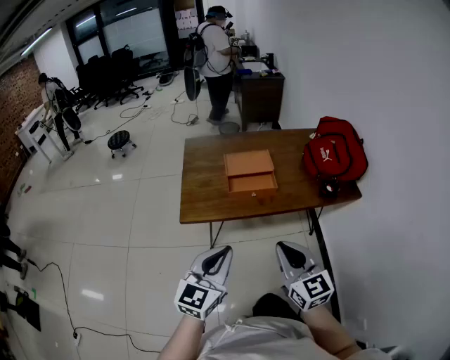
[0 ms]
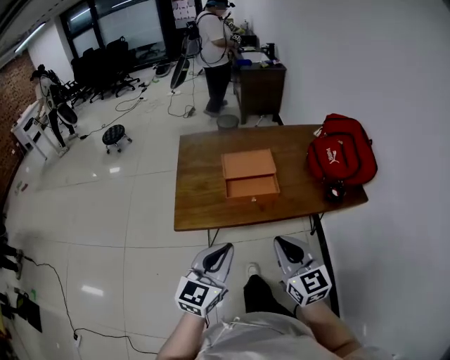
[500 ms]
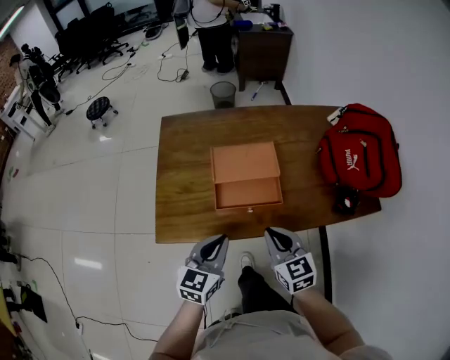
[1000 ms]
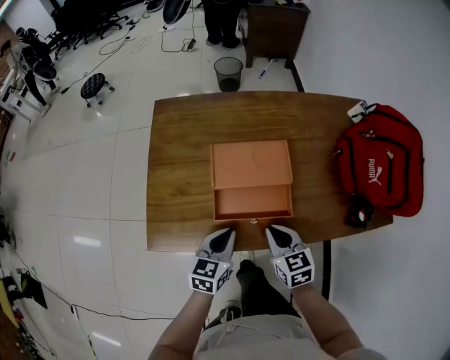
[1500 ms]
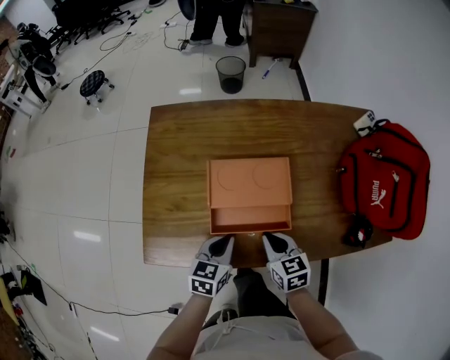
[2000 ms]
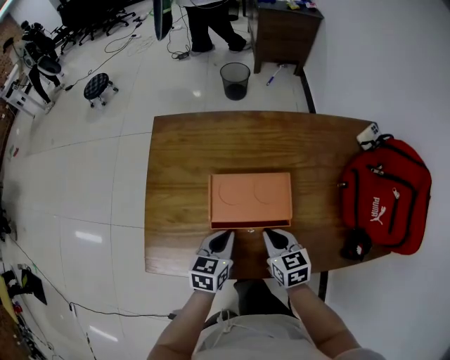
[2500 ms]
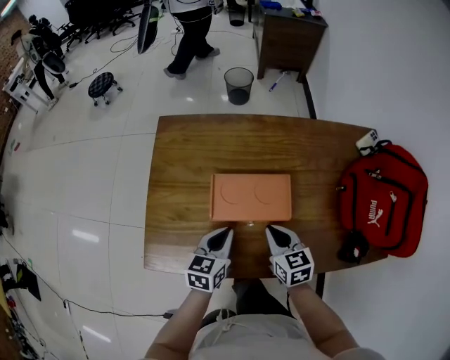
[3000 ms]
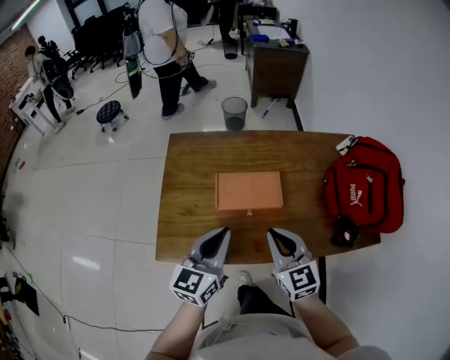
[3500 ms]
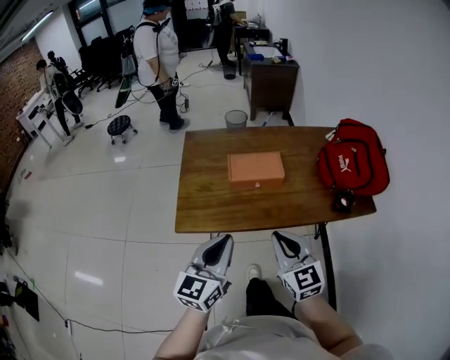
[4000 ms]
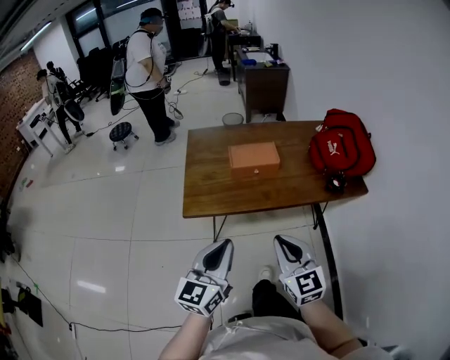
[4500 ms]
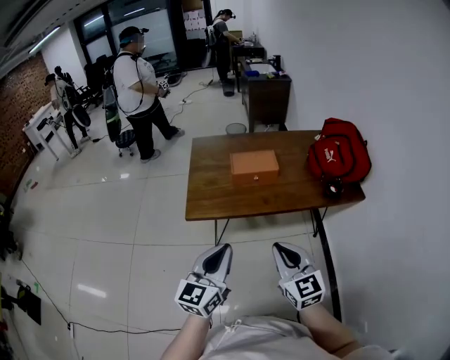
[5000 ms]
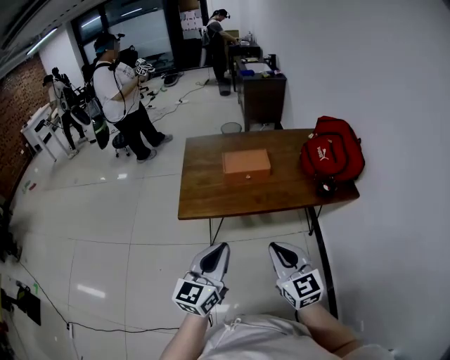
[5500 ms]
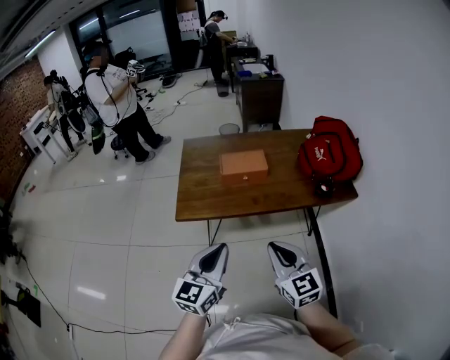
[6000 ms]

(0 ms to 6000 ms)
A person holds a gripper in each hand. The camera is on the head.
0 ms - 2000 ms: Both grippers move forward and downward, roughly 40 cm. The right gripper tips its fingers downward by approximately 30 degrees. Meanwhile the left gripper rotates approximately 40 degrees.
2000 ms - 4000 ms: The grippers both shift upward and backward by about 30 cm. The left gripper points its fingers some 30 degrees further upward. The right gripper rotates approximately 30 degrees.
4000 ms - 6000 ms: The two grippers go some 15 cm backward.

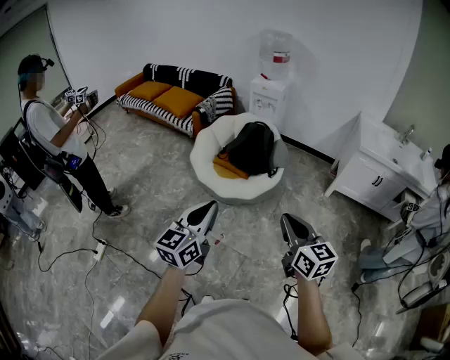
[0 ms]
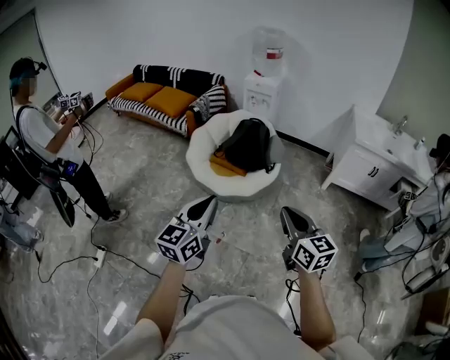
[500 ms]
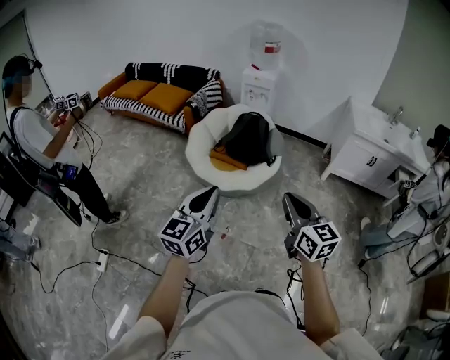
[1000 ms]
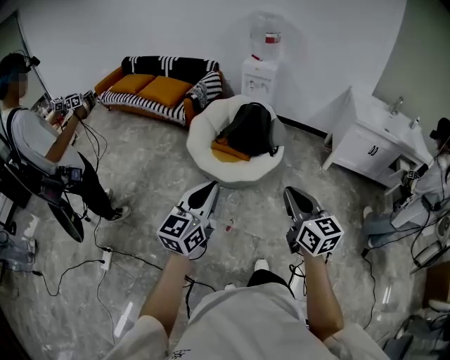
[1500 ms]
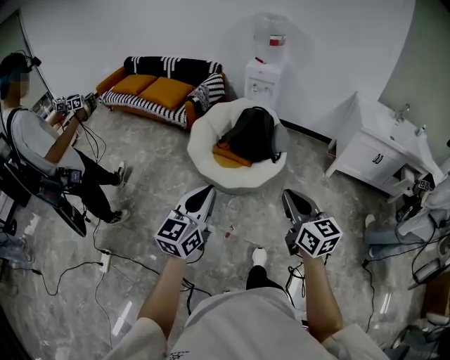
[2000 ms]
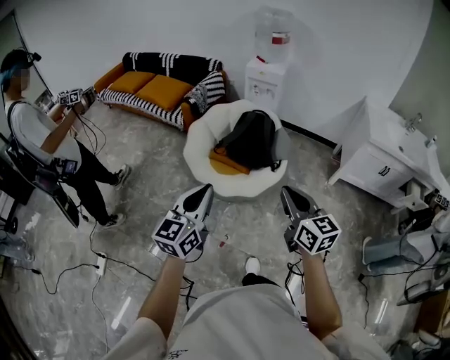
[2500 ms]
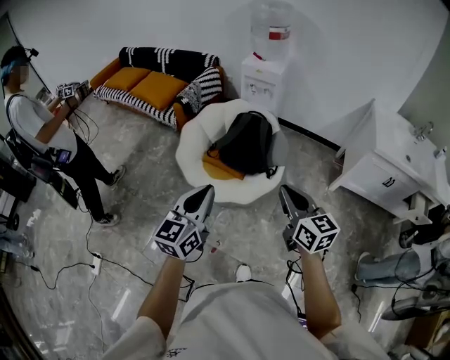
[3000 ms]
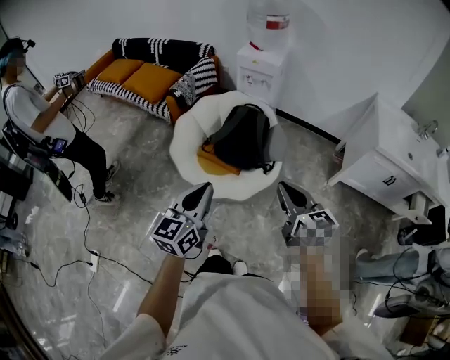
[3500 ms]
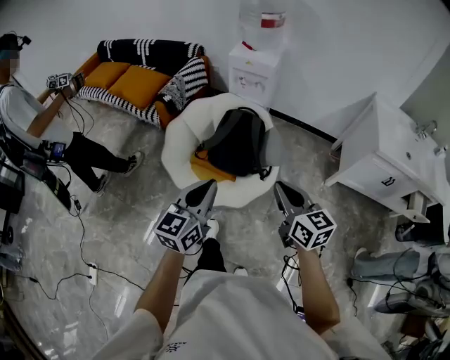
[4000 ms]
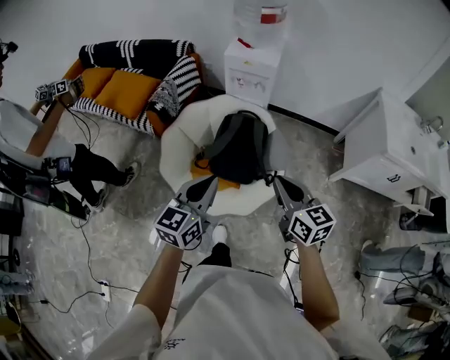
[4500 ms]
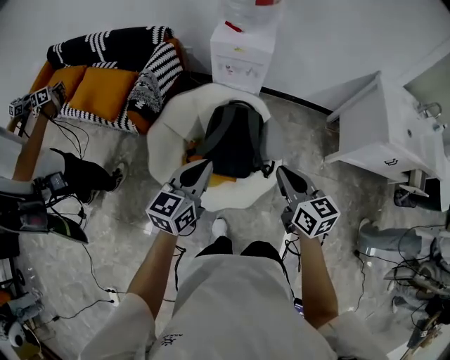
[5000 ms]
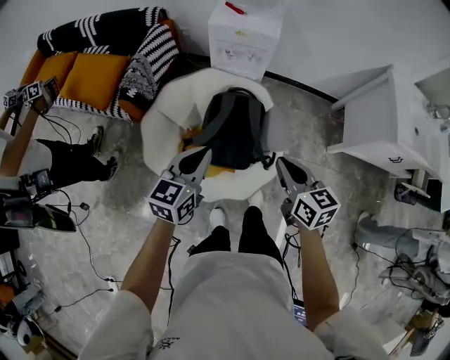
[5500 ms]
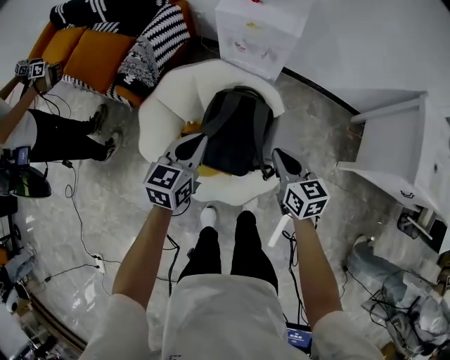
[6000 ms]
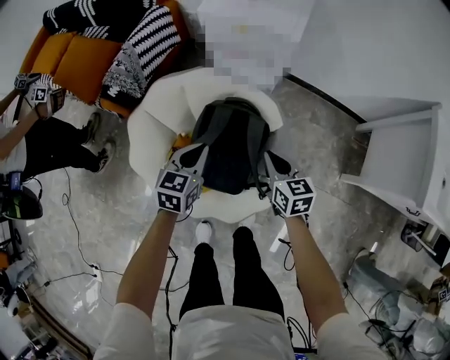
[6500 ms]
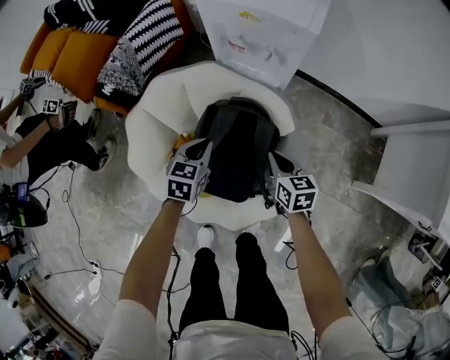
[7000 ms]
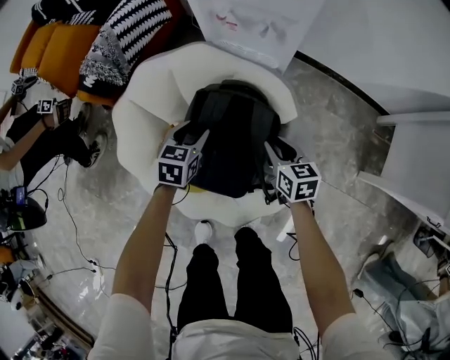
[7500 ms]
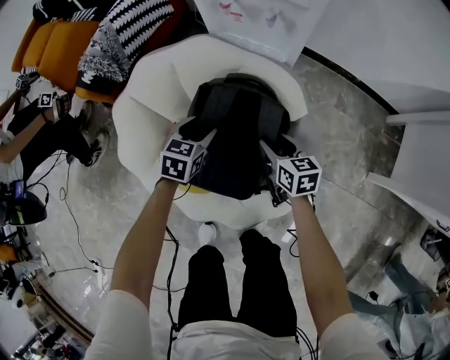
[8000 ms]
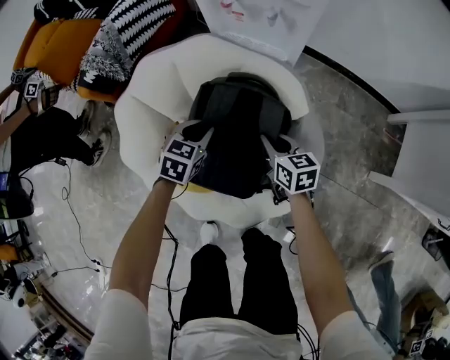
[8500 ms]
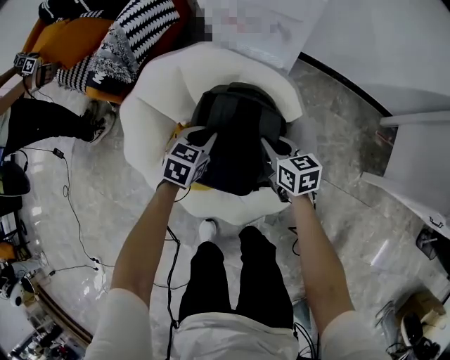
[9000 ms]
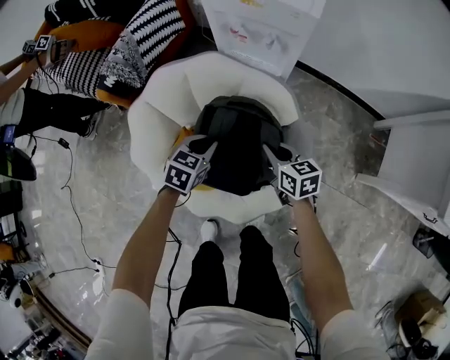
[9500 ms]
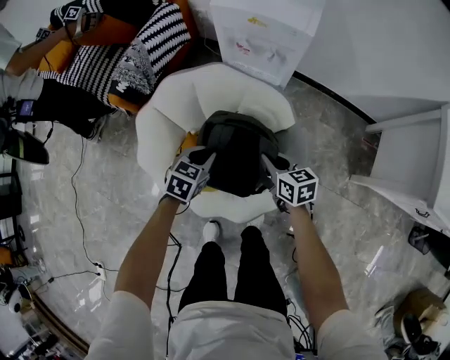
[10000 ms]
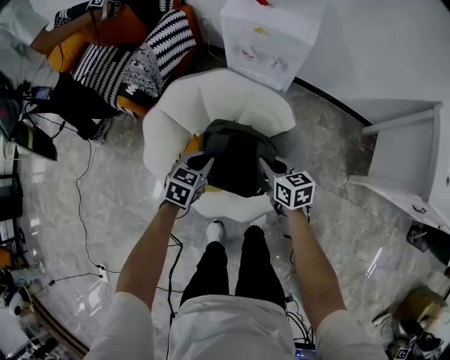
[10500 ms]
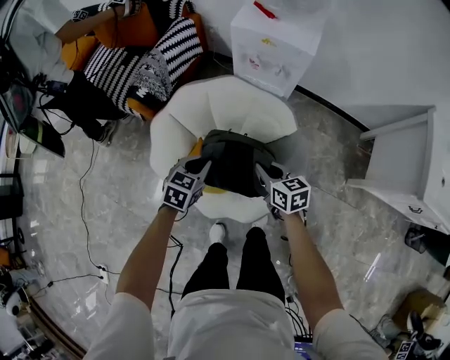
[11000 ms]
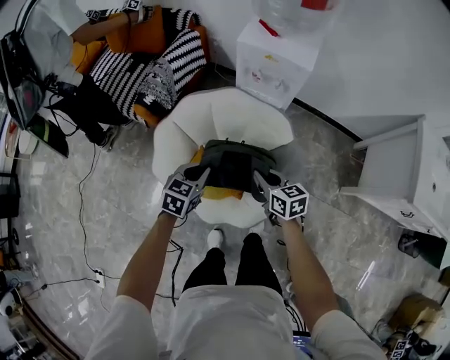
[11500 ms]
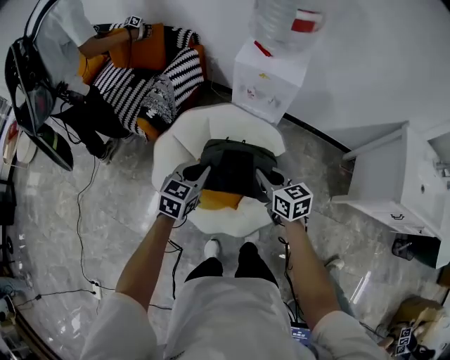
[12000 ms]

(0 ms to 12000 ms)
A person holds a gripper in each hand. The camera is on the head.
0 ms - 2000 ms: Both grippers move to the left, approximately 10 cm.
2000 ms - 4000 ms: The left gripper travels forward and to the right by approximately 40 cm; the right gripper heads forward, covering roughly 35 cm.
4000 ms - 6000 ms: The two grippers go some 40 cm forward and downward. The left gripper rotates approximately 20 degrees.
6000 ms - 8000 ms: Both grippers travel together downward, about 30 cm. The left gripper turns by about 20 degrees, and opens, while the right gripper opens up.
8000 ms - 10000 ms: The right gripper moves upward, about 15 cm, and closes its fingers. Meanwhile the left gripper travels upward and backward by roughly 15 cm, and closes.
10000 ms - 12000 ms: The two grippers go some 20 cm upward.

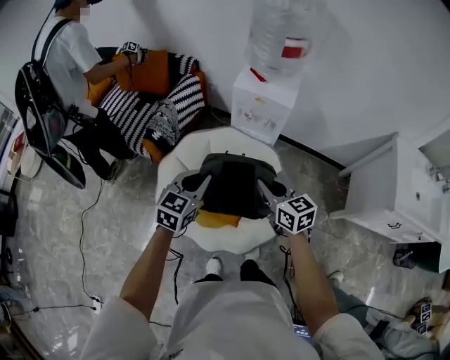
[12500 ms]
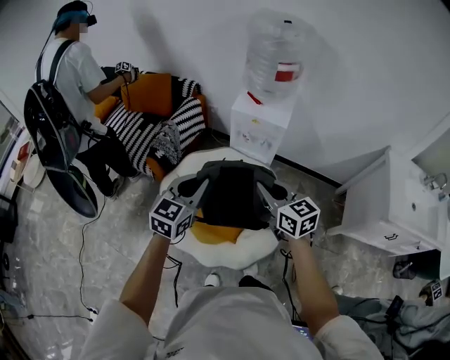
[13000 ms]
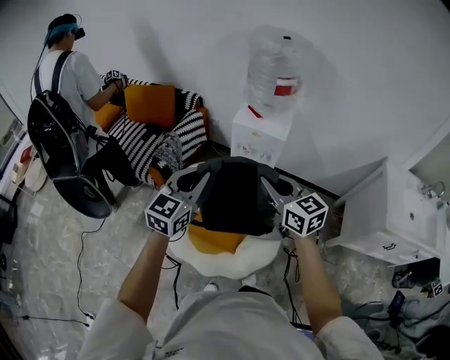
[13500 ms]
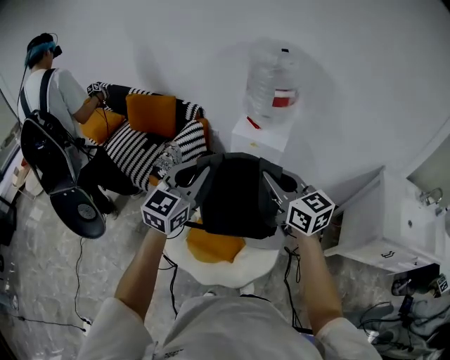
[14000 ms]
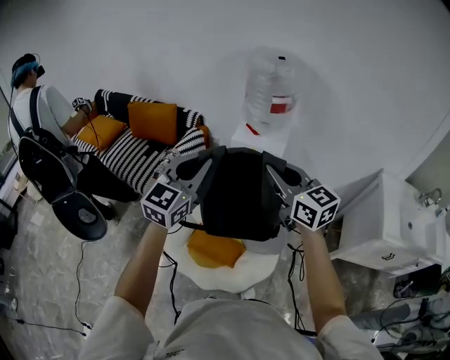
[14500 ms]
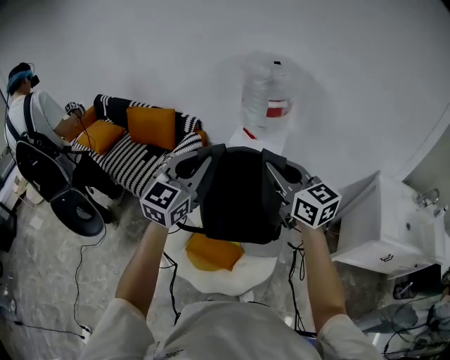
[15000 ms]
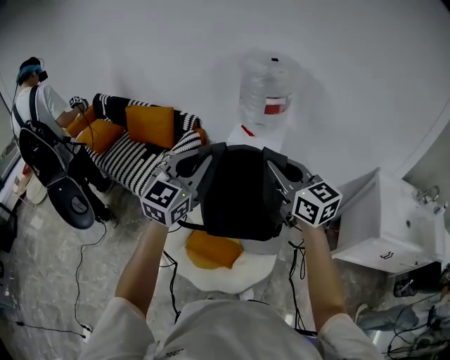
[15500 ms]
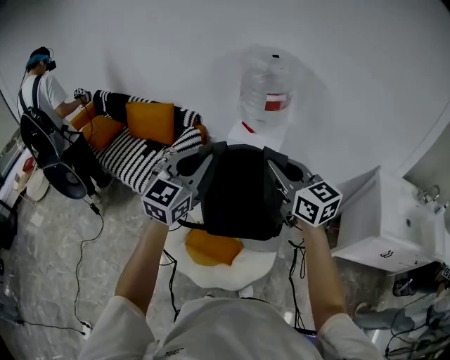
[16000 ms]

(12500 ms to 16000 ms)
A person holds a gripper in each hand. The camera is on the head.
12500 ms - 14500 ms: The grippers both shift upward by some 25 cm. The right gripper turns by about 20 degrees; the left gripper changes its angle by roughly 30 degrees.
14500 ms - 16000 ms: The grippers make only small movements.

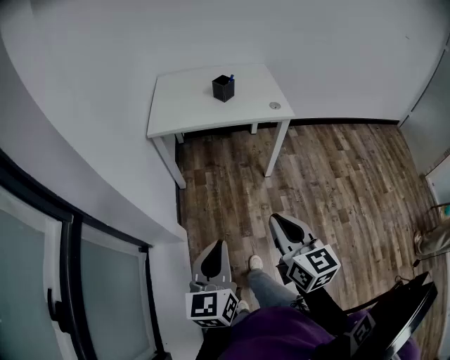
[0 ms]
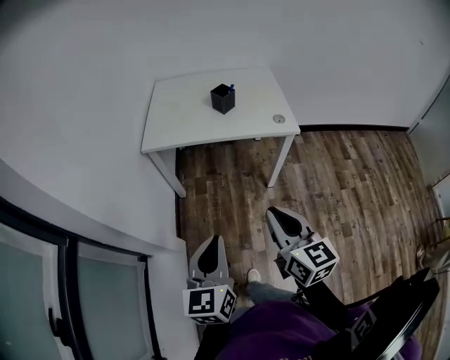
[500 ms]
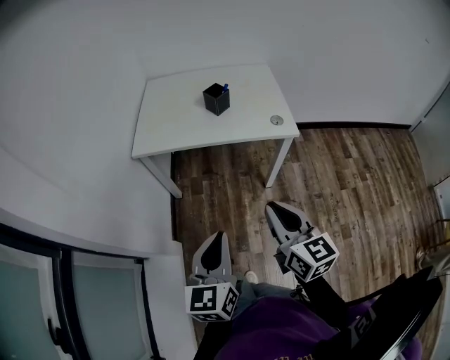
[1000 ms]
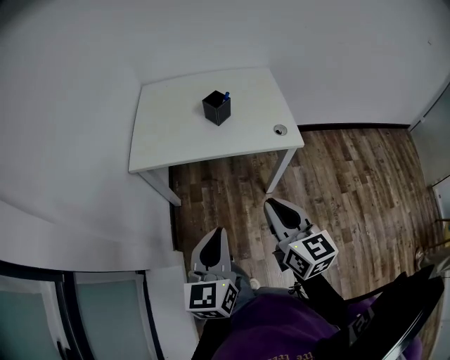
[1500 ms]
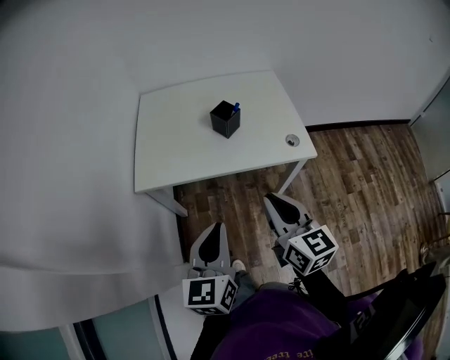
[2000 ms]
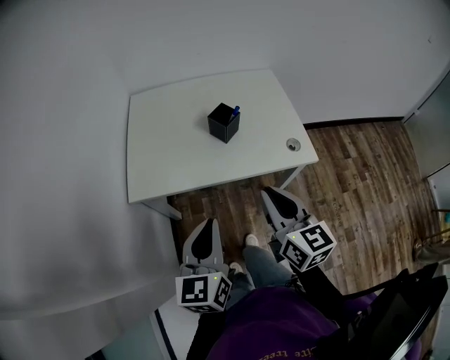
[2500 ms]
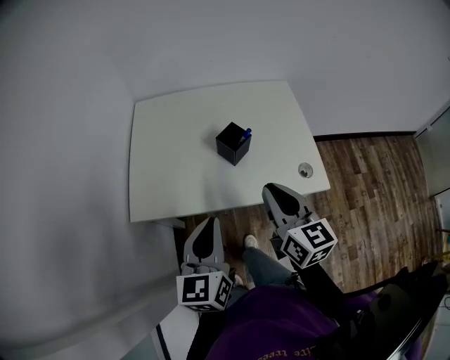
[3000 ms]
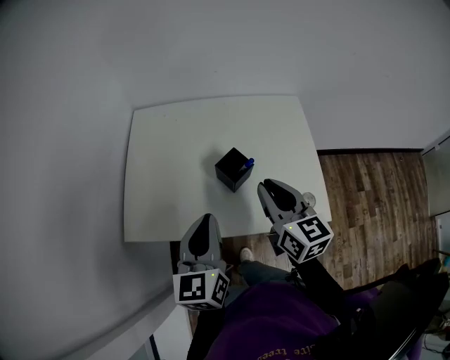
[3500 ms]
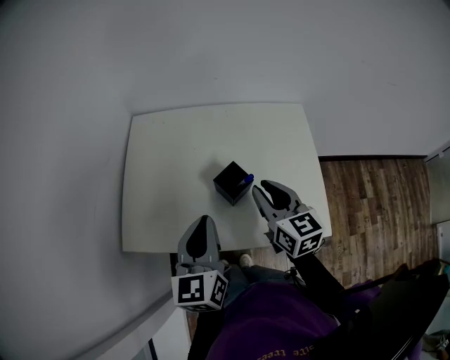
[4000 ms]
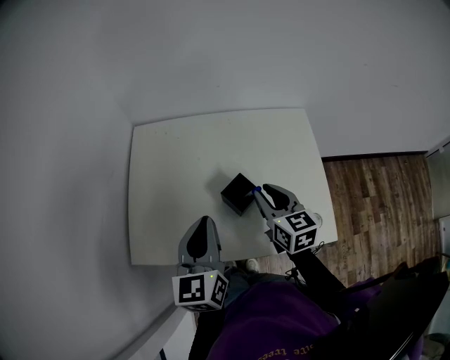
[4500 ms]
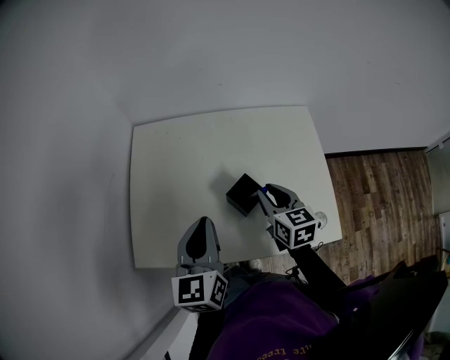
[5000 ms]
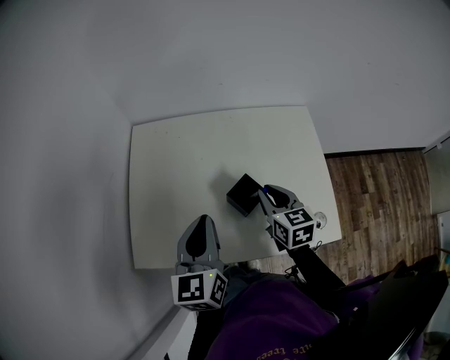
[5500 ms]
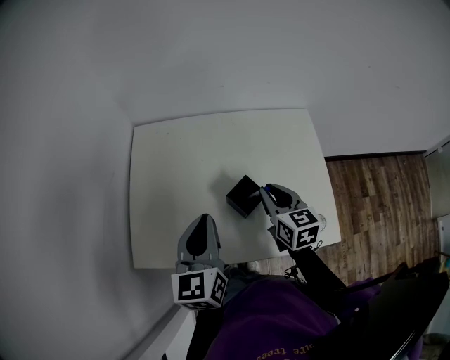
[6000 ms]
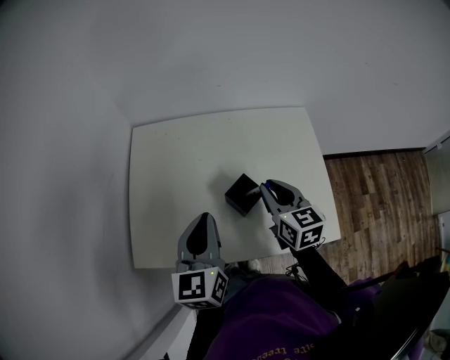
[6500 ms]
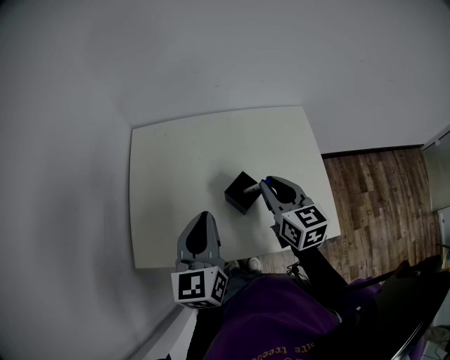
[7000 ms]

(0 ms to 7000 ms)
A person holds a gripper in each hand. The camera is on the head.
0 ms - 2000 ms: Both grippers move forward, about 35 cm.
2000 ms - 3500 ms: Both grippers travel together forward, some 30 cm.
3500 ms - 5000 ms: The right gripper moves forward and downward, approximately 15 cm, while the left gripper heads forward, covering roughly 10 cm.
5000 ms - 7000 ms: The right gripper heads upward, covering roughly 5 cm.
